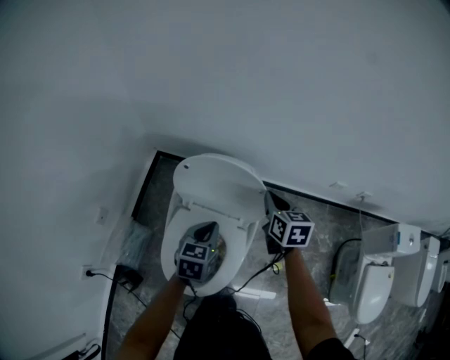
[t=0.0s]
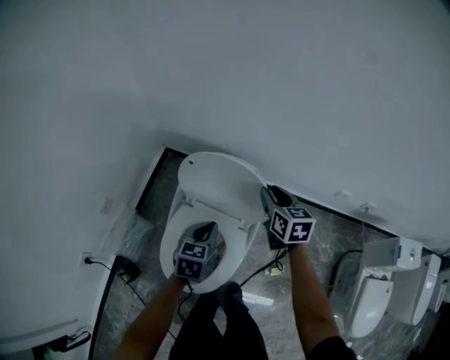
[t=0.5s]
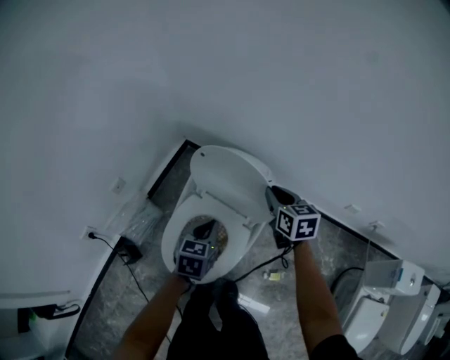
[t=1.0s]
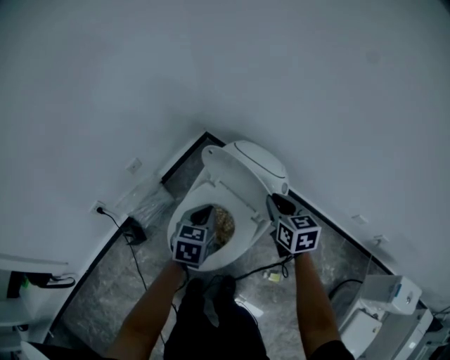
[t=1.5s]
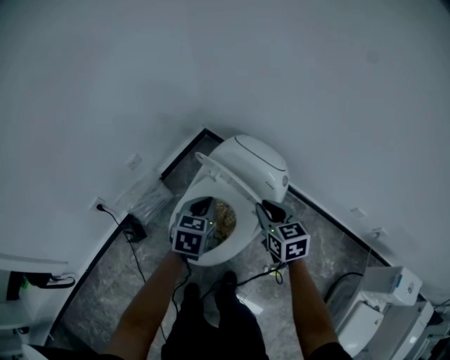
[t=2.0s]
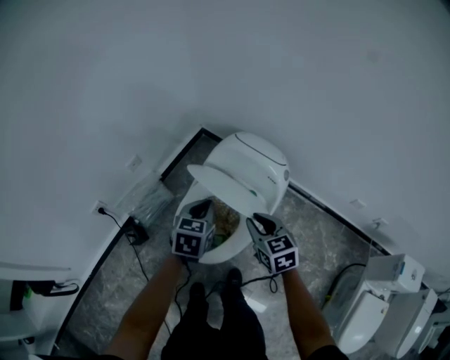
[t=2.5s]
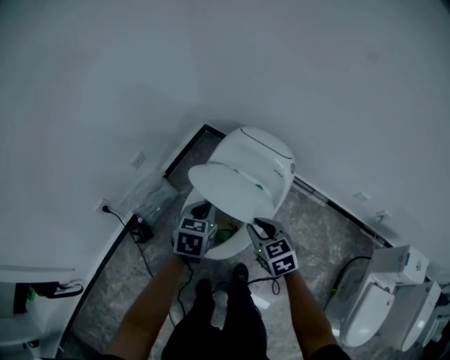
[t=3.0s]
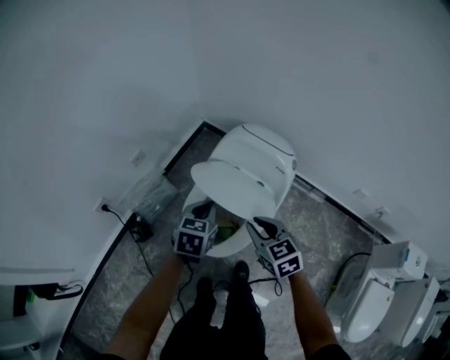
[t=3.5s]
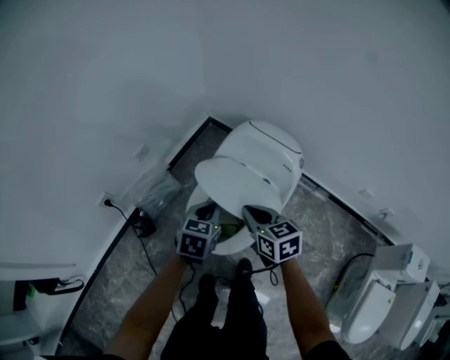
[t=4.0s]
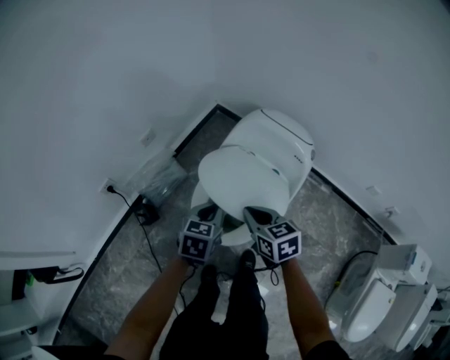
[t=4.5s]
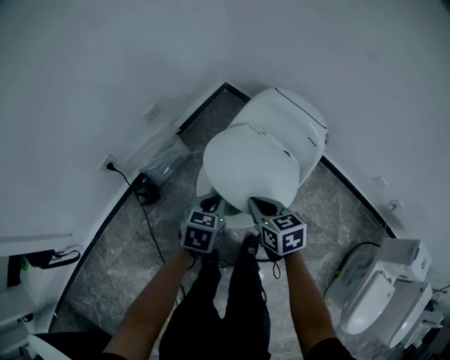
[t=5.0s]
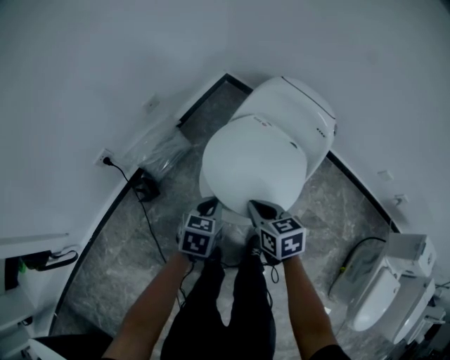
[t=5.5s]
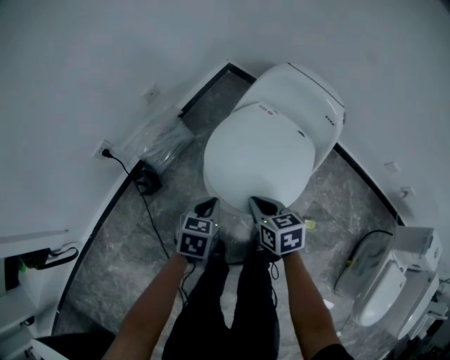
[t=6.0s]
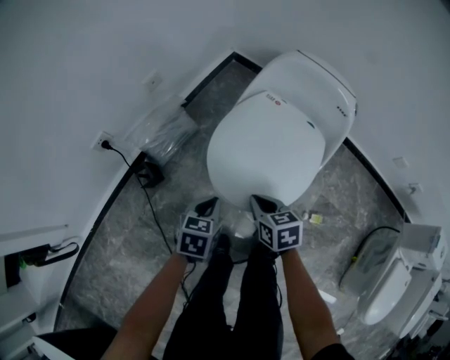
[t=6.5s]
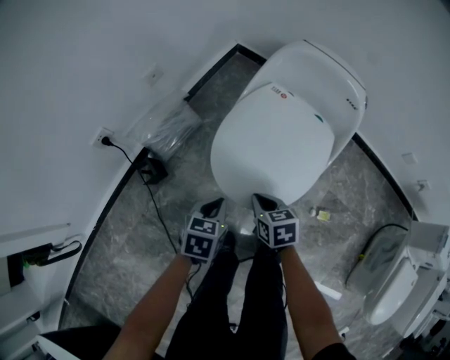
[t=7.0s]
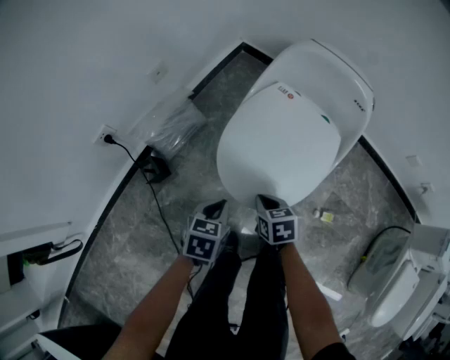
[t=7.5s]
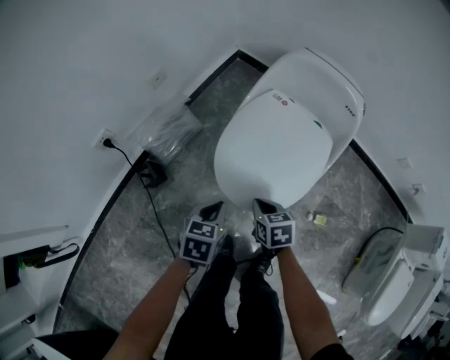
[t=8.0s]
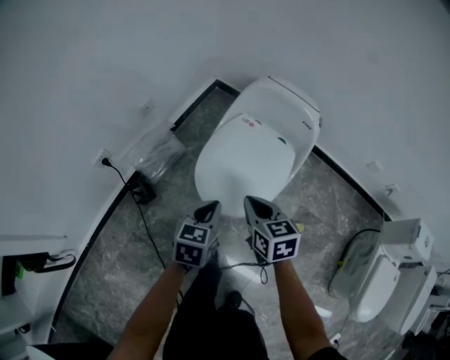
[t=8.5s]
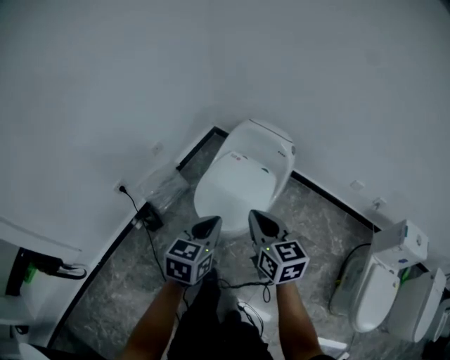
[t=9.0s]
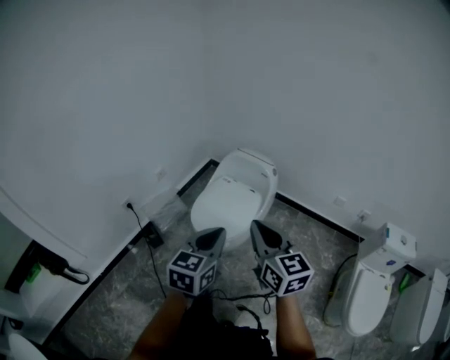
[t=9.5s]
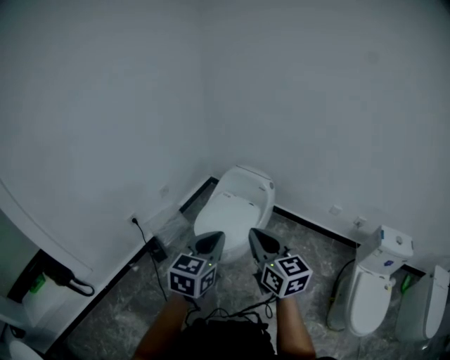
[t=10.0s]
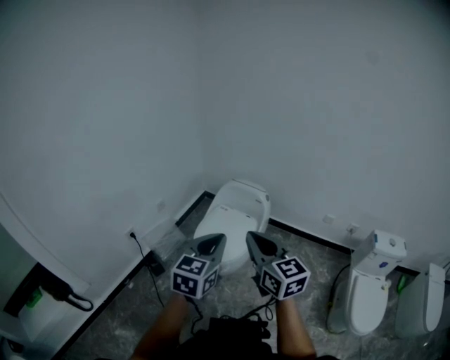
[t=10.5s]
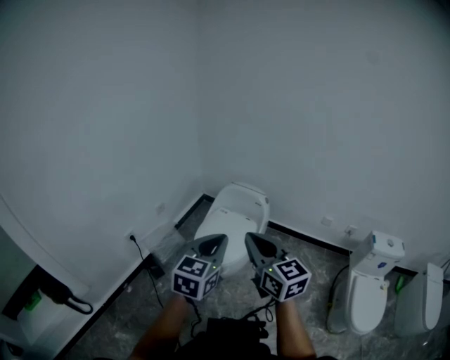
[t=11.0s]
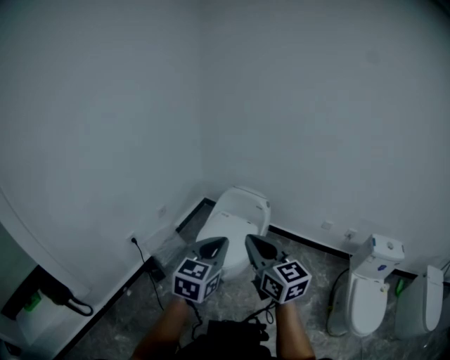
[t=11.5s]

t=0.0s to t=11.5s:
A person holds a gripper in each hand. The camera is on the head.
t=0.0s to t=2.0s: The right gripper moves roughly 15 cm, and rotates approximately 40 degrees, while the left gripper changes place by some 10 cm, and swivels about 20 degrees.
t=2.0s to t=4.0s: The right gripper travels to the left and backward by some 15 cm, while the left gripper shifts about 10 cm to the left and backward.
t=4.0s to t=6.0s: Both grippers travel together downward, backward and to the left, roughly 20 cm.
t=6.0s to t=7.5s: The right gripper goes roughly 15 cm downward. The left gripper shifts approximately 5 cm downward.
t=7.5s to t=9.5s: Both grippers travel together upward, approximately 50 cm. The left gripper angles its fingers upward, by approximately 40 degrees. The right gripper tilts its fingers approximately 50 degrees upward.
t=9.5s to t=11.5s: The right gripper is displaced upward and to the left by approximately 10 cm. Meanwhile the left gripper heads upward, covering approximately 10 cm.

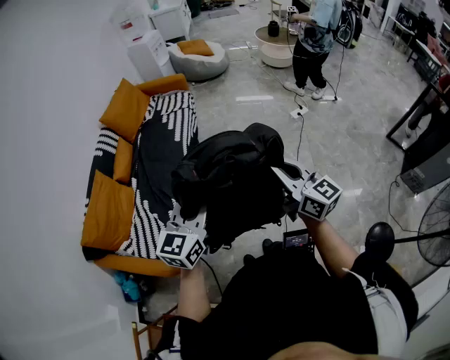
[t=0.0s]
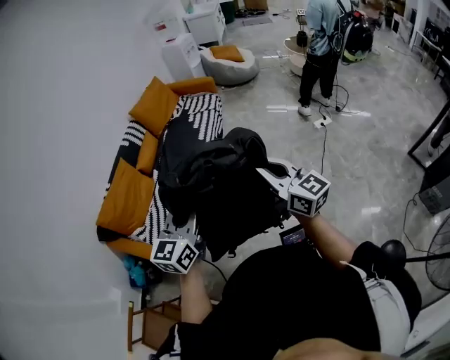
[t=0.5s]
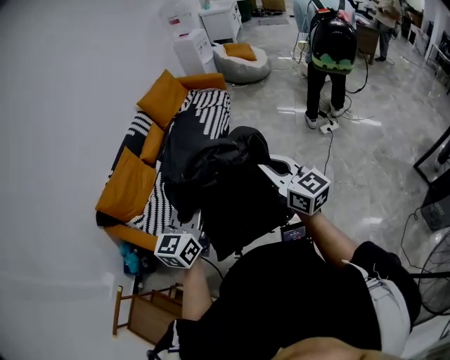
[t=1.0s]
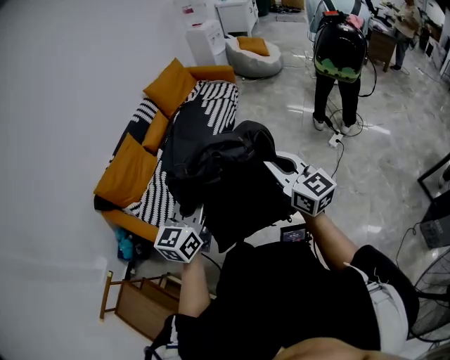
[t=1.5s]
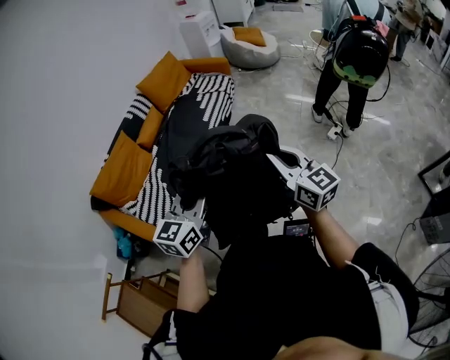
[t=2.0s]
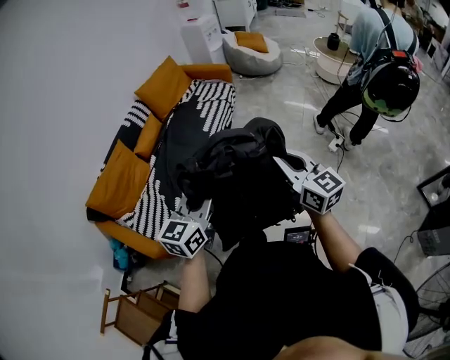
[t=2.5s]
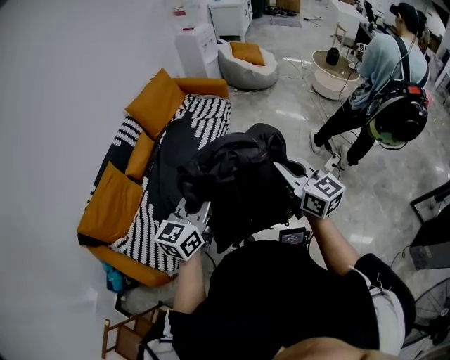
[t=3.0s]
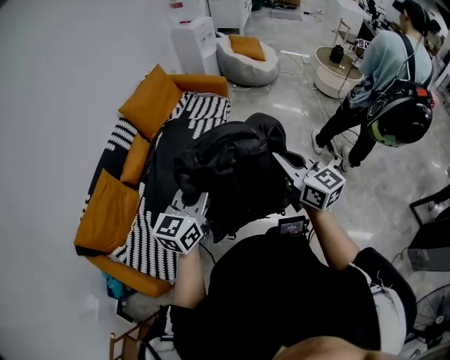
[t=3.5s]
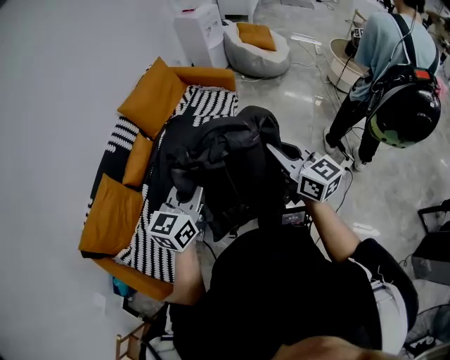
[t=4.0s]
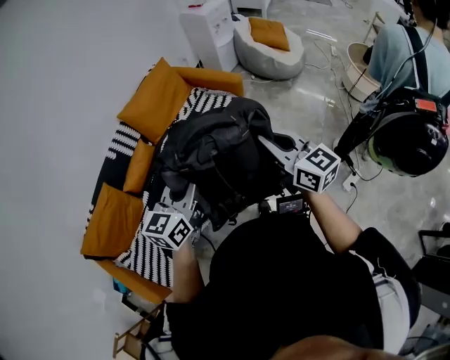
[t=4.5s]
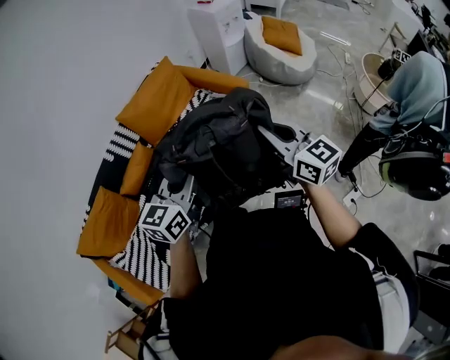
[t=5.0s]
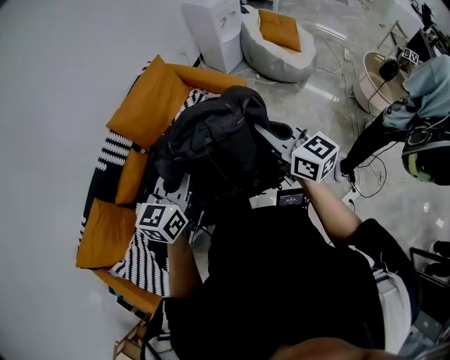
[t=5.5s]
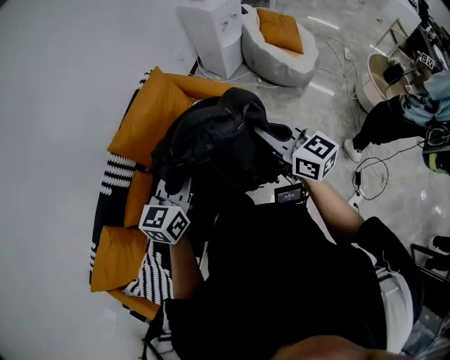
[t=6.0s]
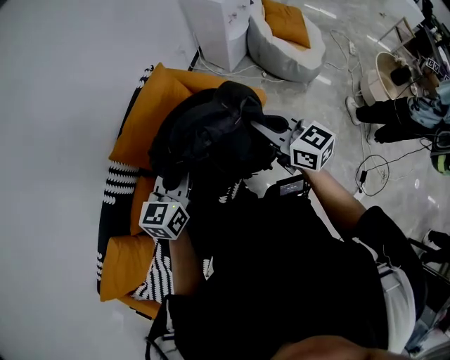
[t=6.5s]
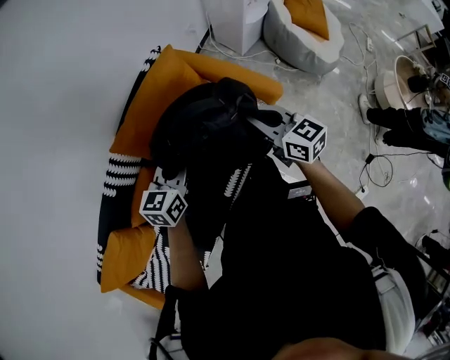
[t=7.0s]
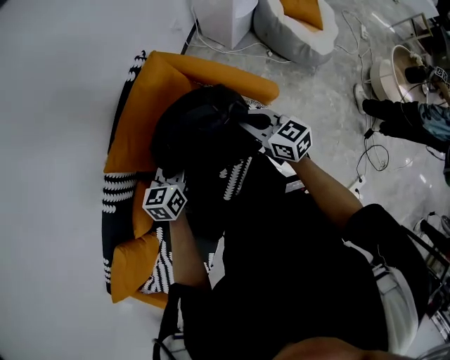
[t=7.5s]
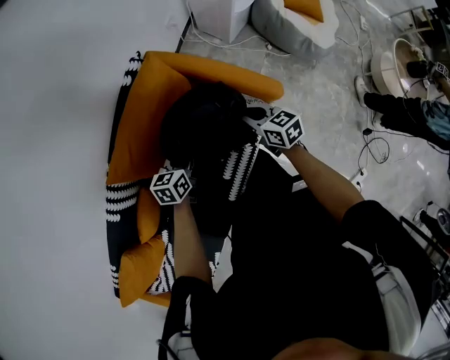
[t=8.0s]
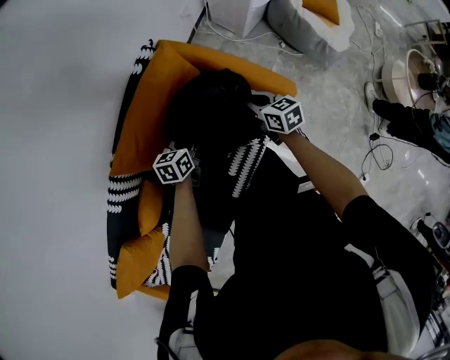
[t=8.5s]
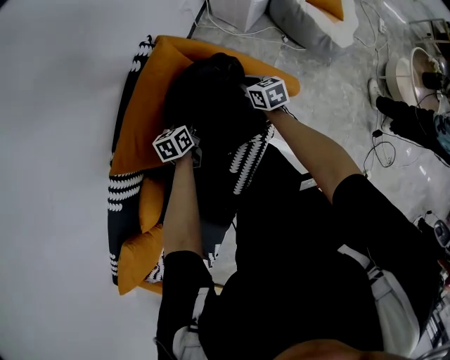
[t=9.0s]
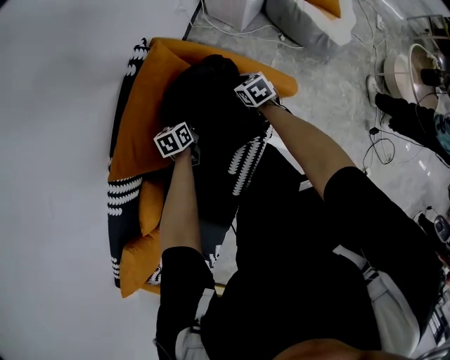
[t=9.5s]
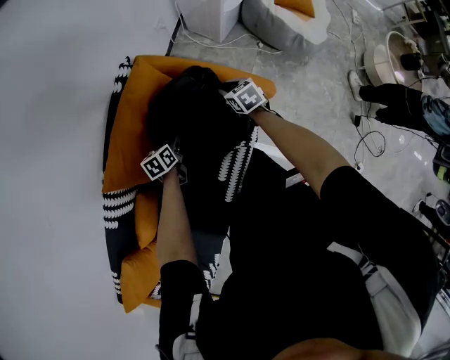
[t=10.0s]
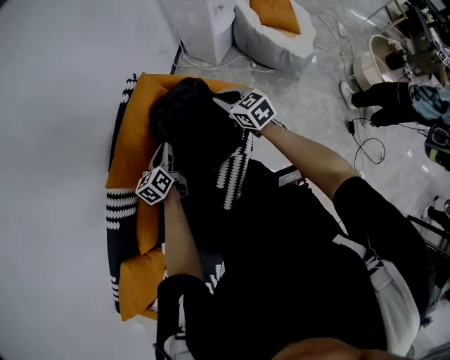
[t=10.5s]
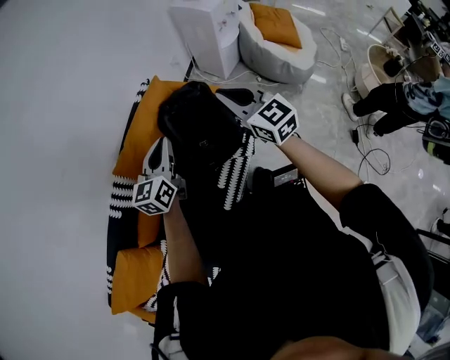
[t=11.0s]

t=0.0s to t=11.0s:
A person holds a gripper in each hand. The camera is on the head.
t=0.0s to t=2.0s: The left gripper changes place by about 5 cm.
t=2.0s to t=3.5s: The two grippers go about 35 cm forward.
t=3.5s to t=5.5s: The two grippers travel together, forward, about 50 cm.
t=5.5s to t=7.5s: Both grippers travel together forward and downward, roughly 40 cm. The left gripper changes its angle by approximately 20 degrees.
t=7.5s to t=9.0s: The grippers both shift downward and forward by approximately 25 cm. The right gripper changes its angle by roughly 20 degrees. Meanwhile the left gripper swivels roughly 20 degrees.
t=9.0s to t=11.0s: Both grippers travel together upward and backward, approximately 40 cm. The right gripper tips its fingers upward by some 30 degrees, while the left gripper tilts its fingers roughly 40 degrees upward, and opens, then closes again.

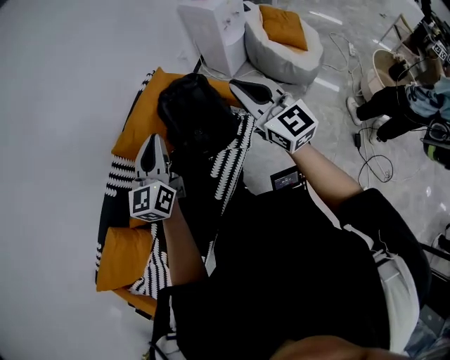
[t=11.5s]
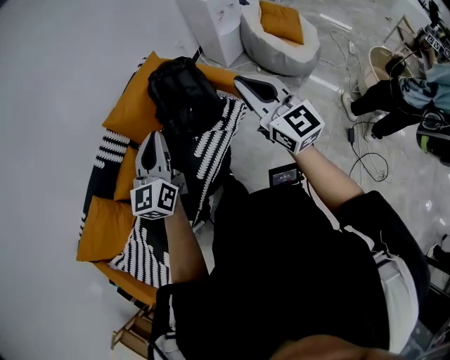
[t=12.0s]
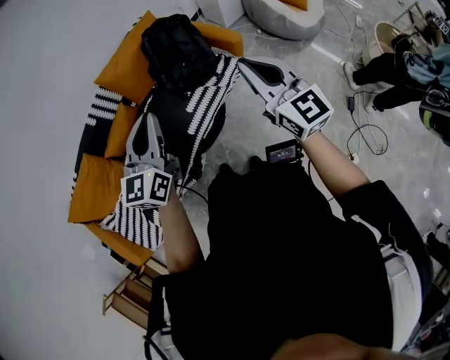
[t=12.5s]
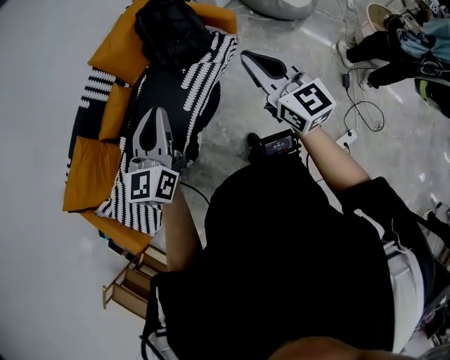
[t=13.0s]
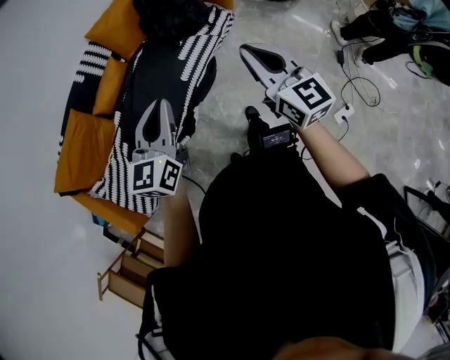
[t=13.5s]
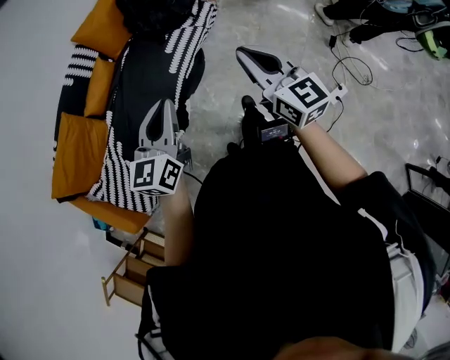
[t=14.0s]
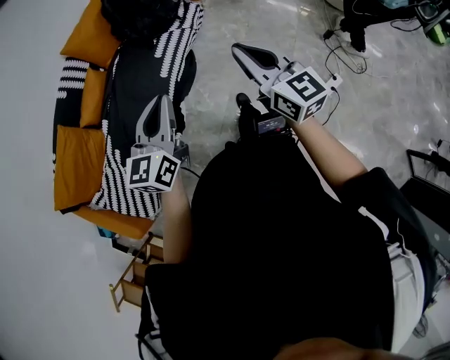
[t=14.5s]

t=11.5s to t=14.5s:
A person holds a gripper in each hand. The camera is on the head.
t=11.5s to t=13.0s: Both grippers move backward, about 35 cm.
t=13.0s to t=14.5s: The grippers both shift backward by some 20 cm.

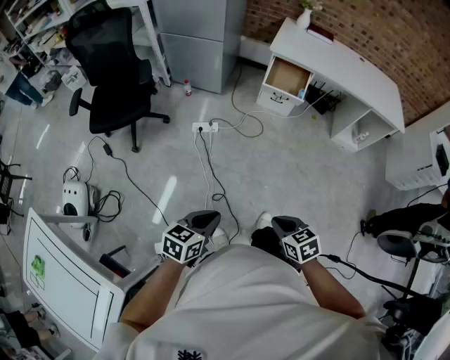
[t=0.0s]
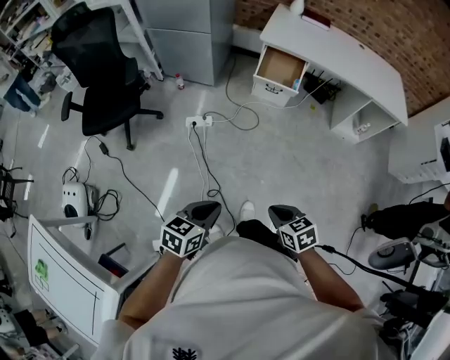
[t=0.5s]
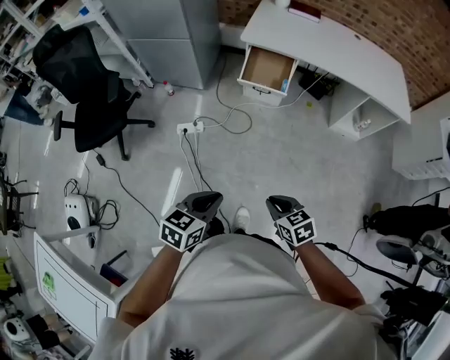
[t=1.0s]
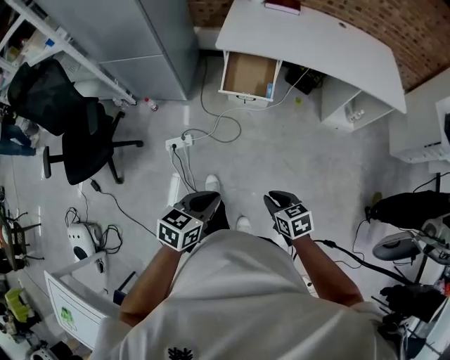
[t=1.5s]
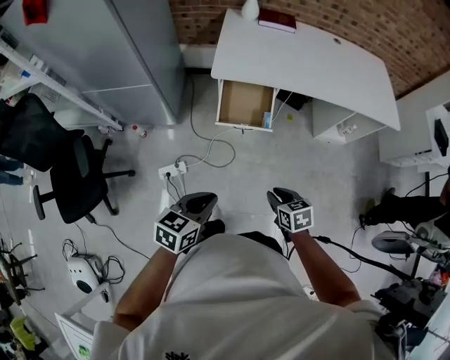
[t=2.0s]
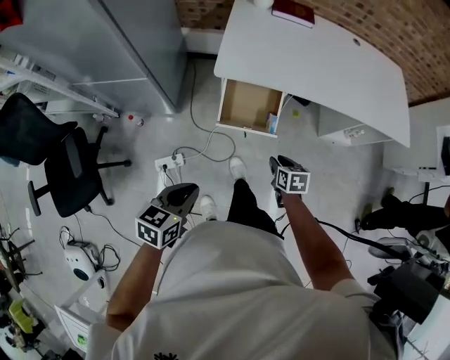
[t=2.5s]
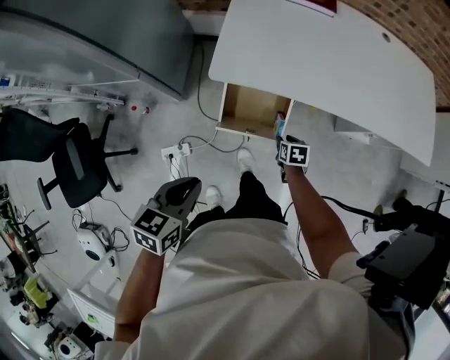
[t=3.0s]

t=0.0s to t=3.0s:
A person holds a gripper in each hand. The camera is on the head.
t=0.0s to t=1.5s: The two grippers go roughly 40 cm forward and to the right.
t=1.5s to t=3.0s: The pair of grippers is taken forward, roughly 50 cm. The right gripper swivels roughly 30 degrees.
